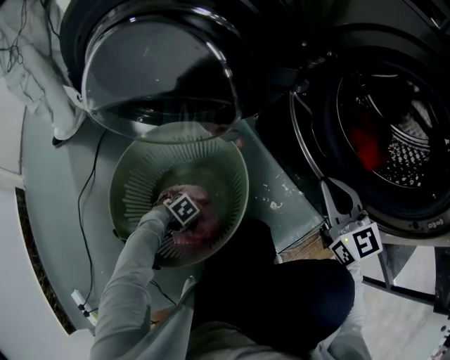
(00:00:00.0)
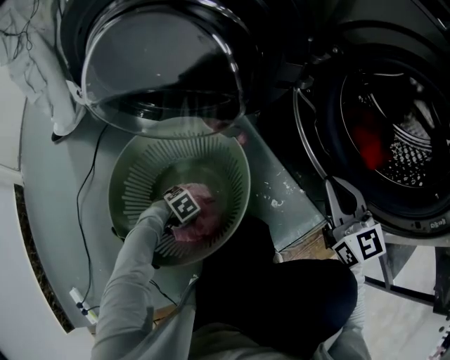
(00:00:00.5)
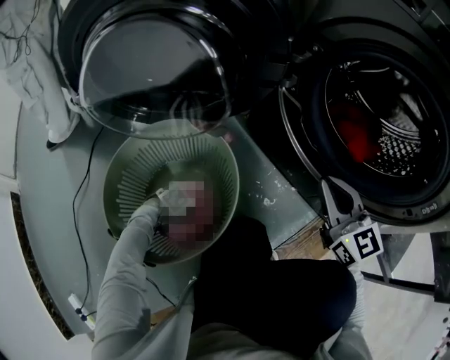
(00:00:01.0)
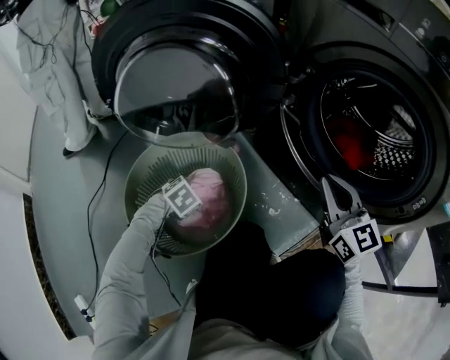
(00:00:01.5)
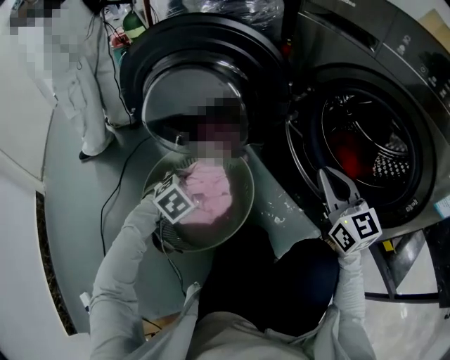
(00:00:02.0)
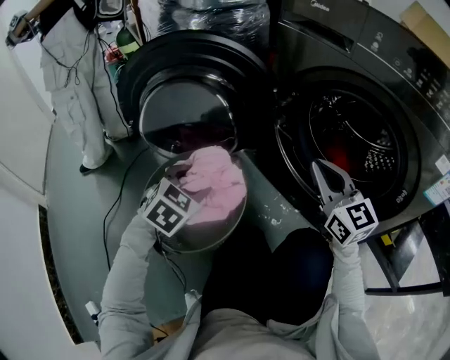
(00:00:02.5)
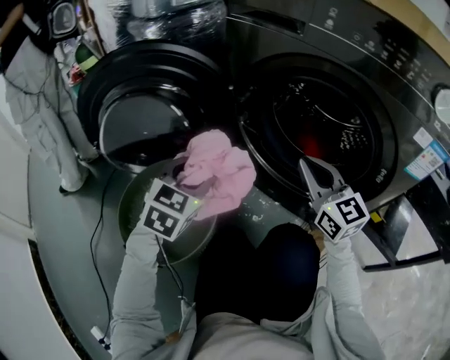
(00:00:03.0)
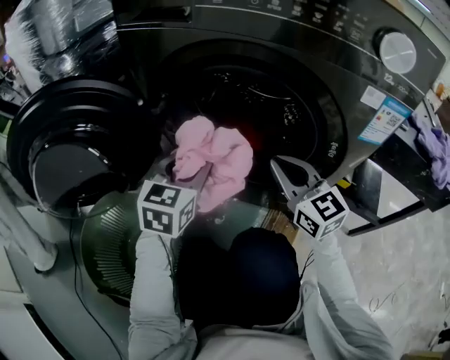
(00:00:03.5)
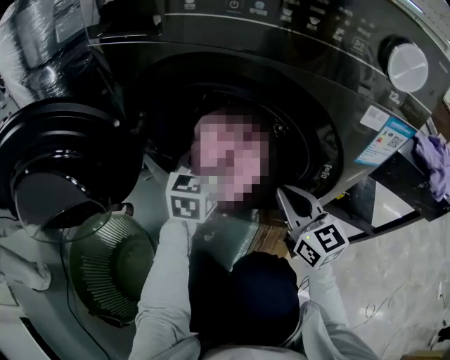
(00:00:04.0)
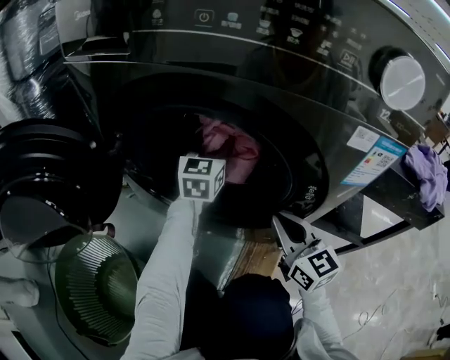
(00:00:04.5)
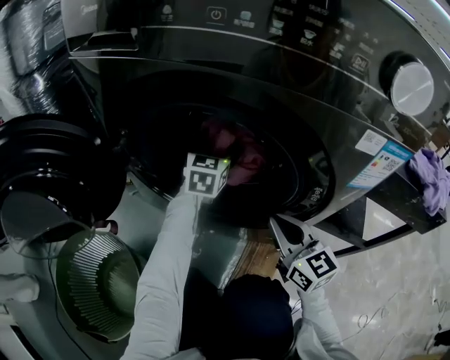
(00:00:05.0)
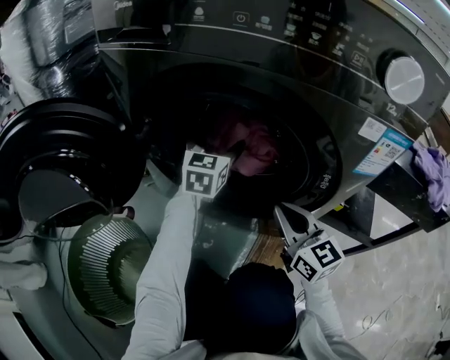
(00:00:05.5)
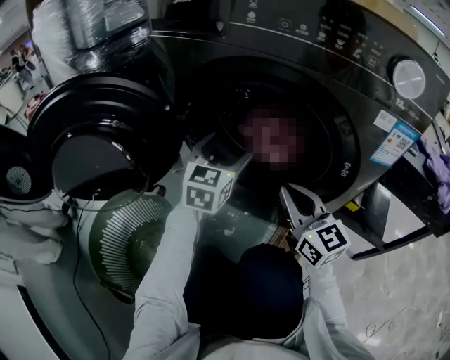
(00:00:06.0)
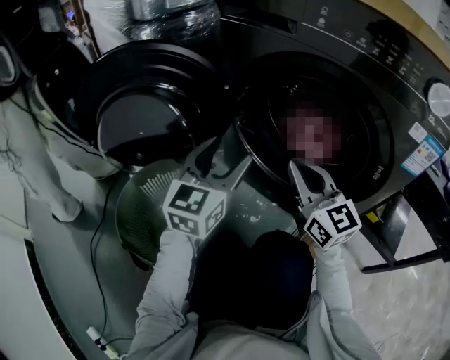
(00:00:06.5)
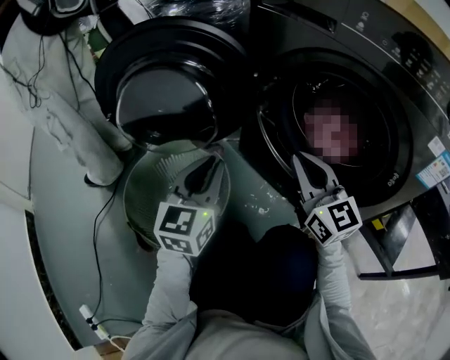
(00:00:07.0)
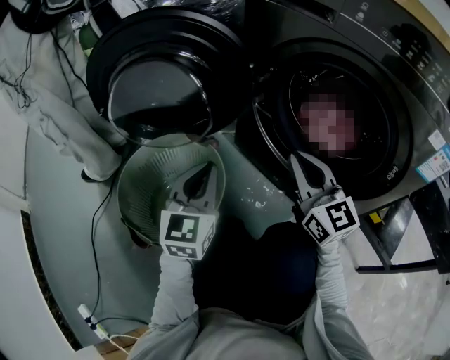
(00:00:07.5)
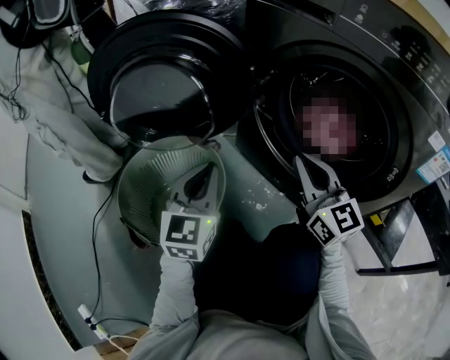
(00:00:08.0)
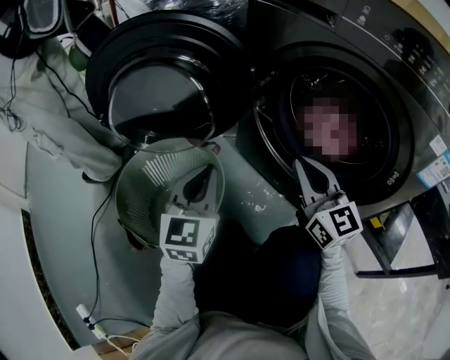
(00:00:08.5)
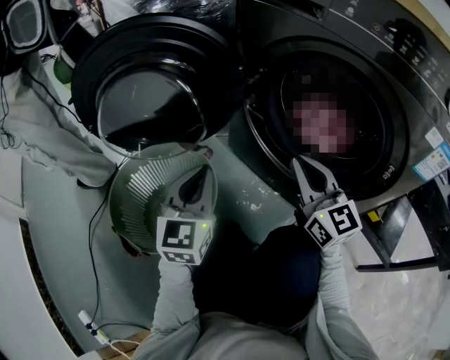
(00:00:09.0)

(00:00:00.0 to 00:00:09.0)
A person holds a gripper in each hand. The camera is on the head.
00:00:00.0 - 00:00:02.0: The left gripper heads upward, covering about 25 cm, turns by roughly 40 degrees, and closes up; the right gripper moves upward, roughly 10 cm.
00:00:02.0 - 00:00:04.5: The right gripper ends up approximately 25 cm from where it was, and swivels some 30 degrees; the left gripper shifts by about 60 cm, and points its fingers about 60 degrees further upward.
00:00:04.5 - 00:00:07.0: The right gripper changes place by some 25 cm, and swivels about 30 degrees; the left gripper moves up and down over roughly 10 cm, changing direction 2 times, swivels some 30 degrees, and opens, then closes once more.
00:00:07.0 - 00:00:09.0: There are only small adjustments of the grippers.

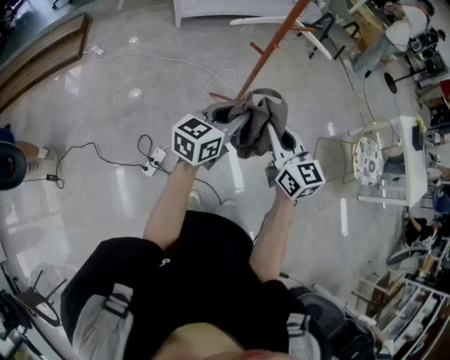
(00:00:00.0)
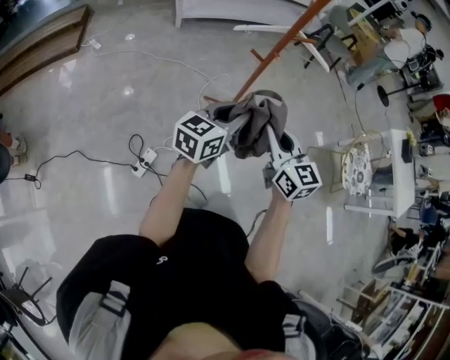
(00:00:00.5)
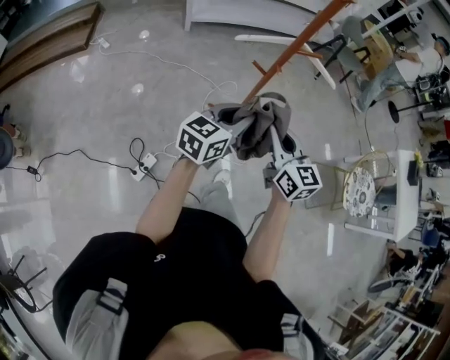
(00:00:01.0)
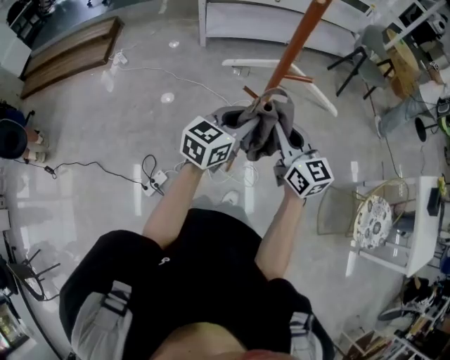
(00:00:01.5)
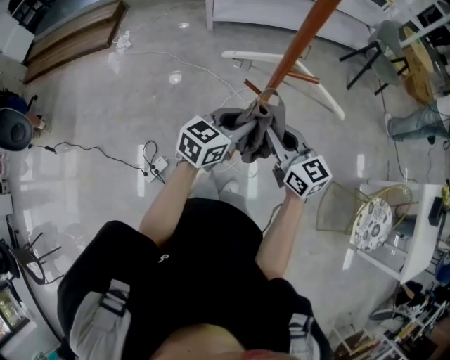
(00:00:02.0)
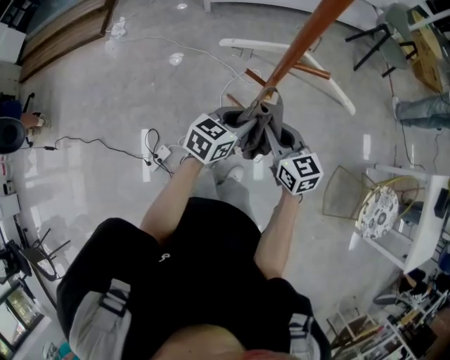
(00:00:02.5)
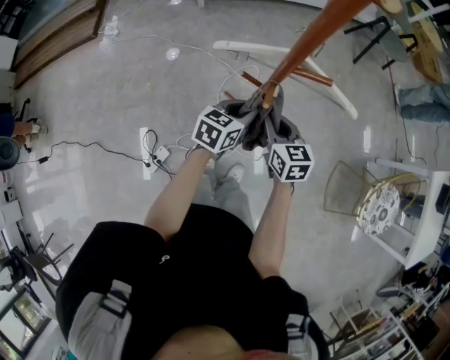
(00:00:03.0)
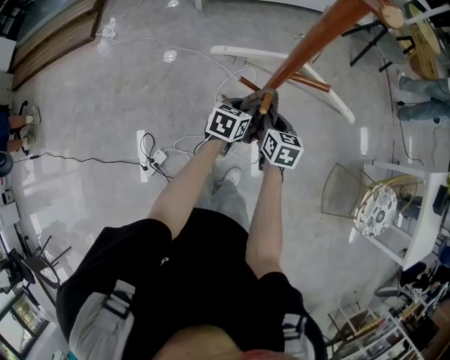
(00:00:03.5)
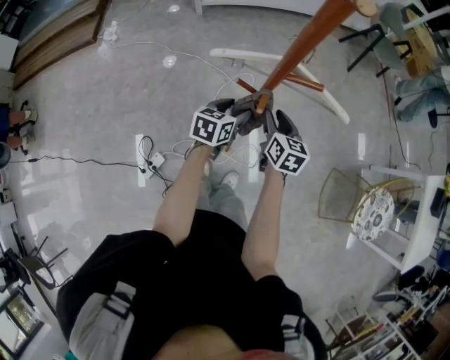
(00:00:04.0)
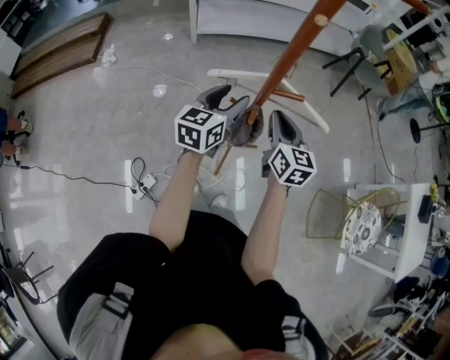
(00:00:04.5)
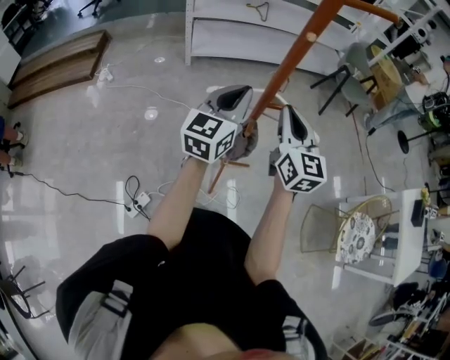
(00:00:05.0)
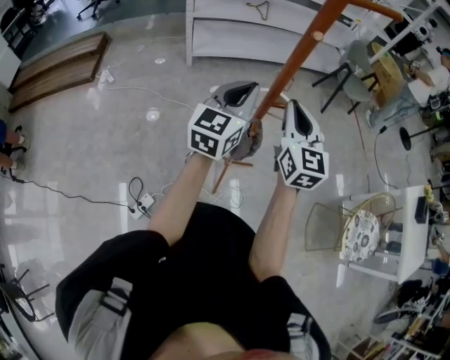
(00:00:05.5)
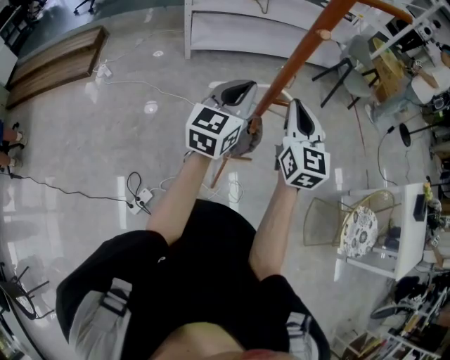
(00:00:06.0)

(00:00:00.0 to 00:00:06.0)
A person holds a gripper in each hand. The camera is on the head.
00:00:00.0 - 00:00:02.0: The grippers both shift forward by roughly 25 cm. The right gripper swivels some 20 degrees.
00:00:02.0 - 00:00:04.0: The two grippers go some 20 cm downward and forward. The right gripper swivels approximately 40 degrees, and opens its fingers. The left gripper swivels about 20 degrees, and opens up.
00:00:04.0 - 00:00:06.0: The grippers both shift upward by some 30 cm. The left gripper angles its fingers upward, by about 40 degrees, and closes its fingers, while the right gripper changes its angle by roughly 40 degrees, and closes its fingers.

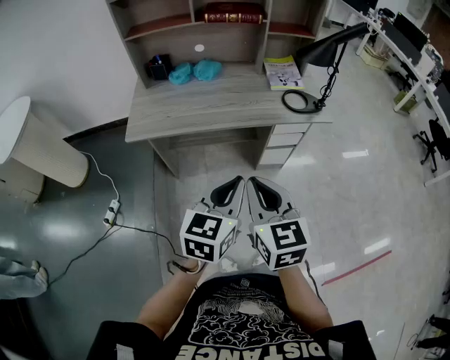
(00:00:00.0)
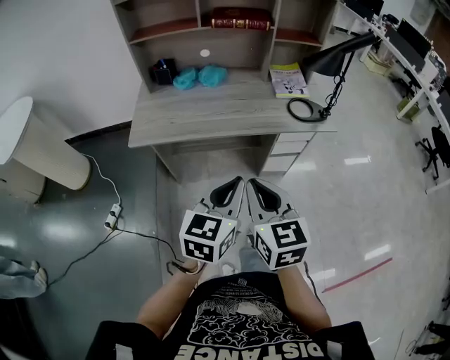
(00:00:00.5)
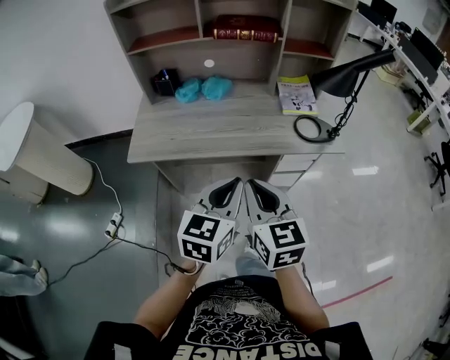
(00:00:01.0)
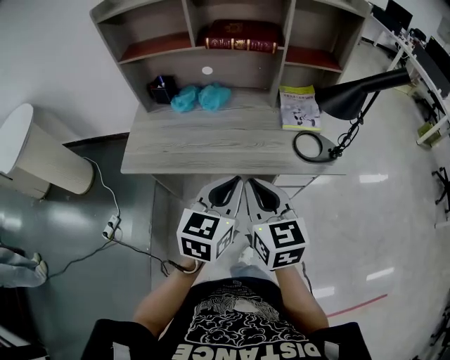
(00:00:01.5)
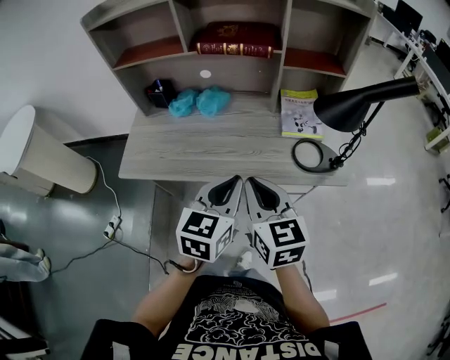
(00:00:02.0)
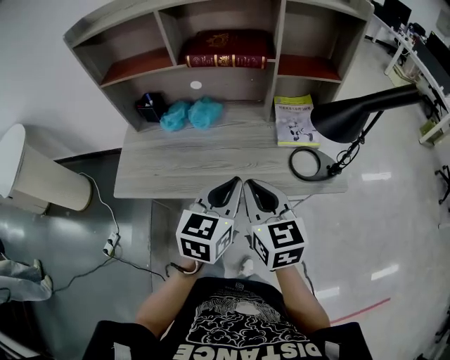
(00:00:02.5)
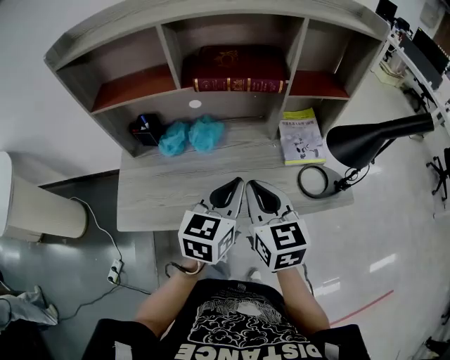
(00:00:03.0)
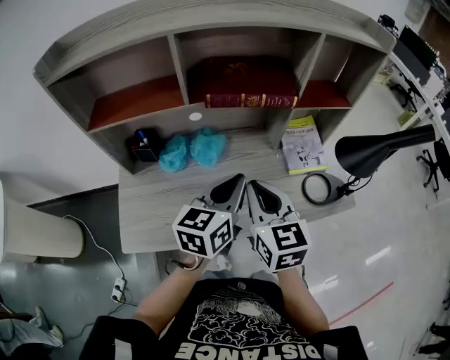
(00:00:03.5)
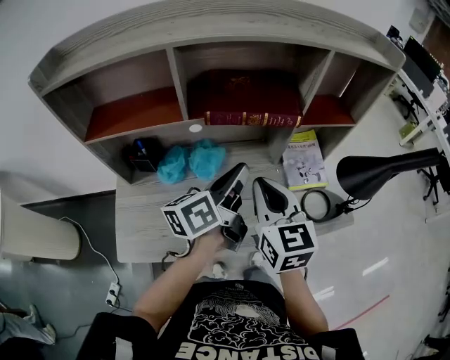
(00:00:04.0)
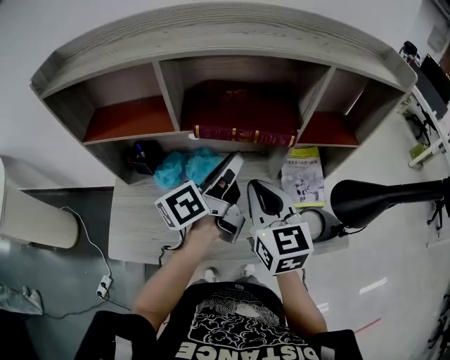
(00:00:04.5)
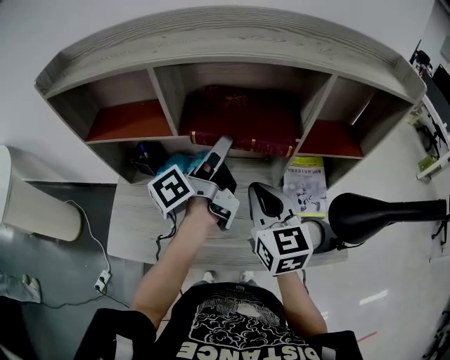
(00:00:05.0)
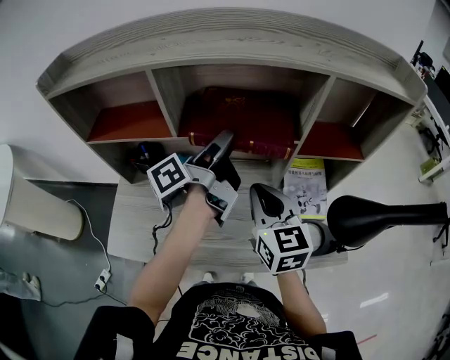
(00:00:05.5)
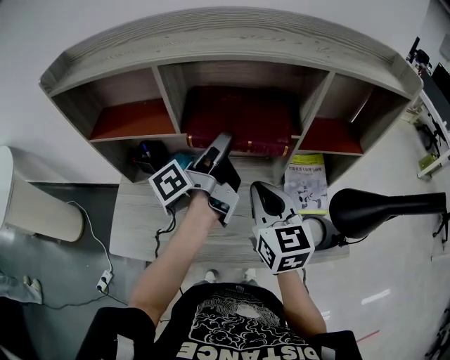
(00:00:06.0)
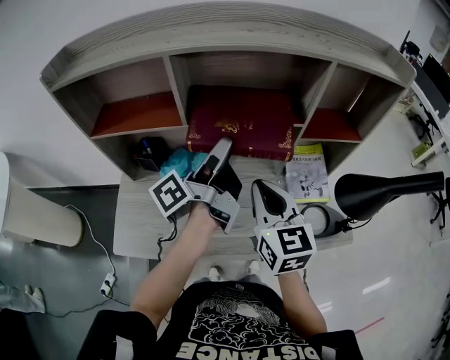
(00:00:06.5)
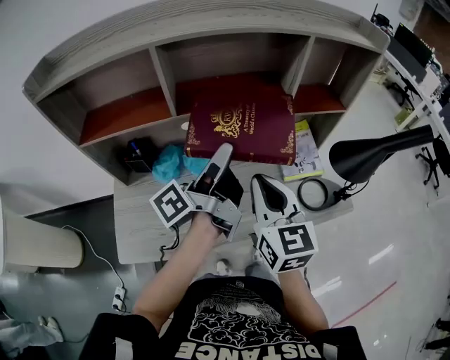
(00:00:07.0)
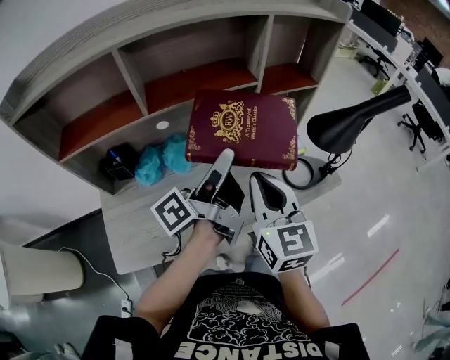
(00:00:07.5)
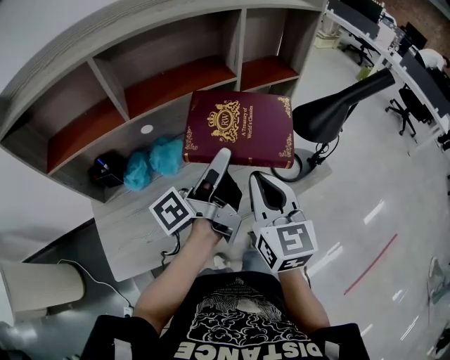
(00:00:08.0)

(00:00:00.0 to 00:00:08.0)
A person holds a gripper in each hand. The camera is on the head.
00:00:00.0 - 00:00:02.0: Both grippers travel together forward, roughly 25 cm.
00:00:02.0 - 00:00:04.0: The grippers both shift forward and to the left by roughly 25 cm. The left gripper rolls counterclockwise, seen from behind, by about 40 degrees.
00:00:04.0 - 00:00:06.0: The left gripper goes approximately 10 cm forward, rotates about 40 degrees, and opens its fingers. Meanwhile the right gripper is displaced forward by about 5 cm.
00:00:06.0 - 00:00:08.0: The left gripper shifts by some 15 cm, and turns by about 30 degrees; the right gripper moves roughly 15 cm, and rotates some 30 degrees.

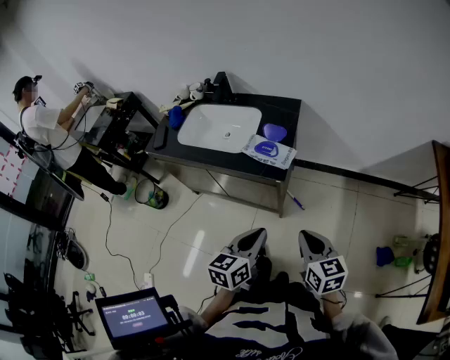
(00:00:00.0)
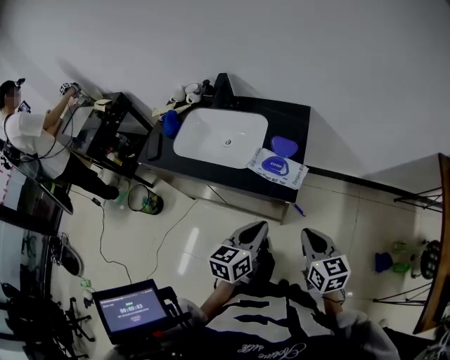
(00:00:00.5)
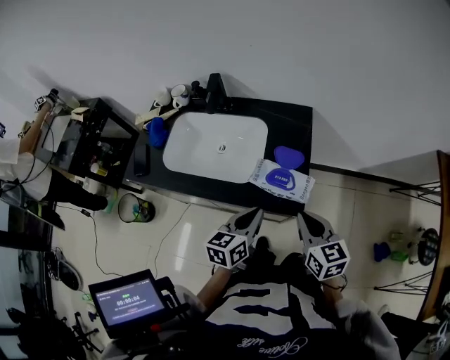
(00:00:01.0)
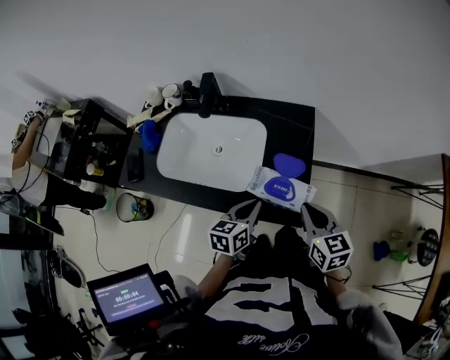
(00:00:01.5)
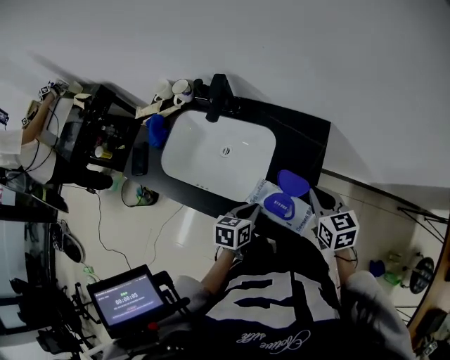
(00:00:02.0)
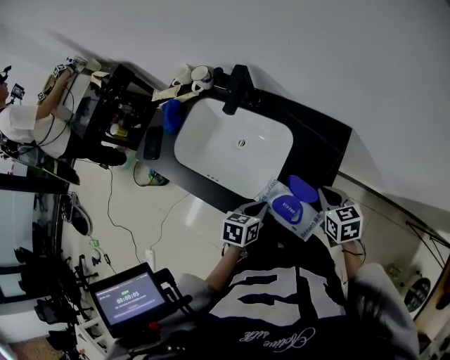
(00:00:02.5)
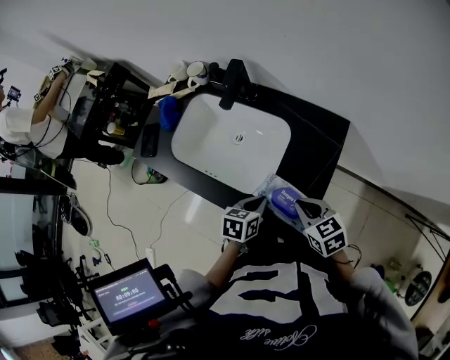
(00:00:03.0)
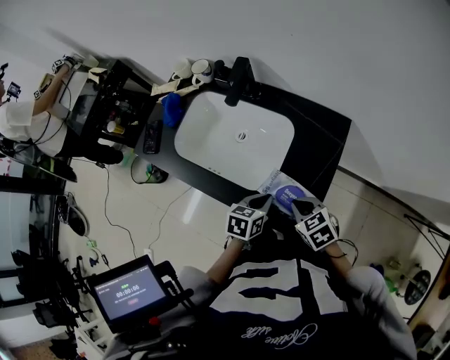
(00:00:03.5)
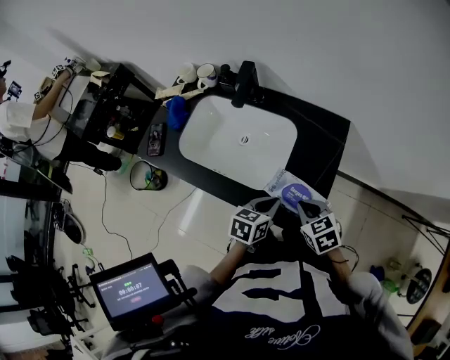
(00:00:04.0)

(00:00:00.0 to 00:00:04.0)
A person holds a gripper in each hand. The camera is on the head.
00:00:00.0 - 00:00:02.0: The right gripper heads forward, covering roughly 40 cm. Meanwhile the left gripper travels forward and downward by approximately 35 cm, and rotates roughly 20 degrees.
00:00:02.0 - 00:00:04.0: The right gripper heads to the left, backward and downward, covering roughly 15 cm, and changes its angle by approximately 20 degrees.
